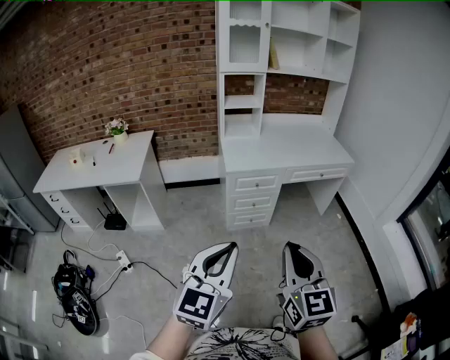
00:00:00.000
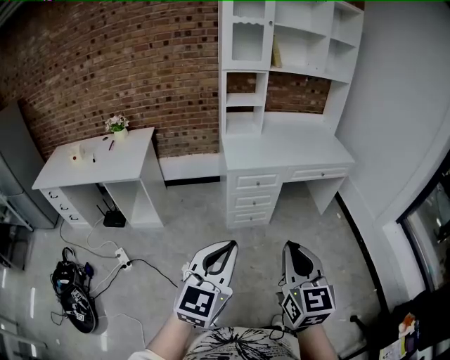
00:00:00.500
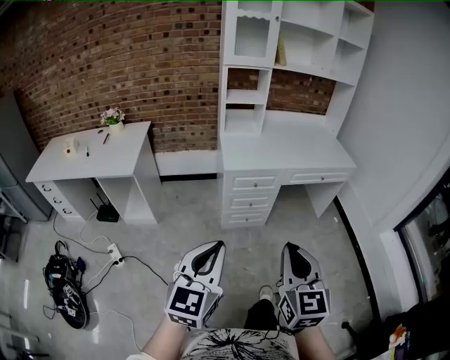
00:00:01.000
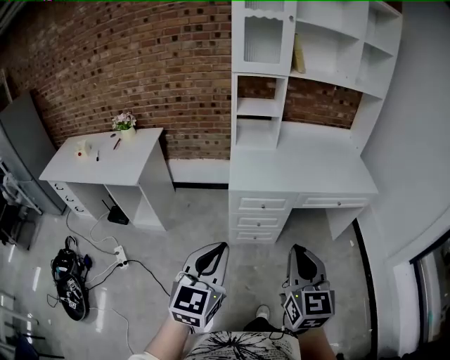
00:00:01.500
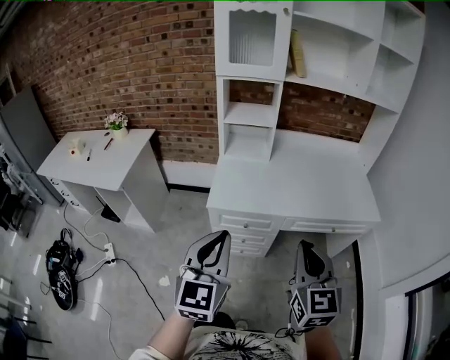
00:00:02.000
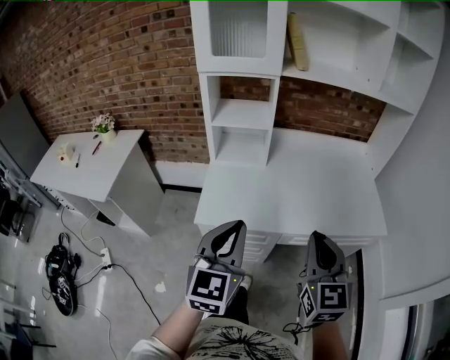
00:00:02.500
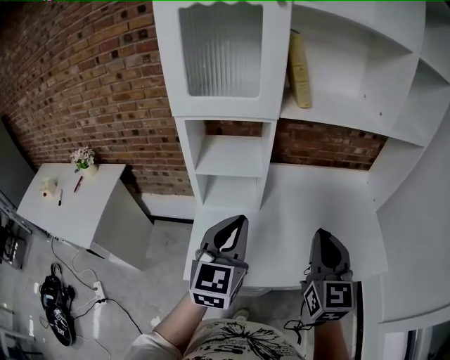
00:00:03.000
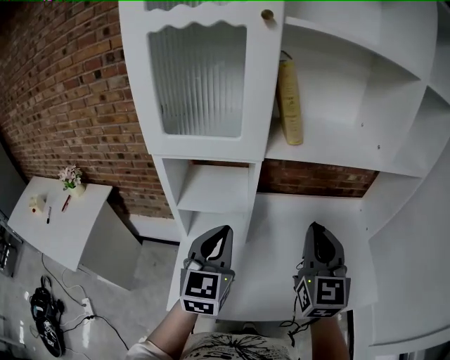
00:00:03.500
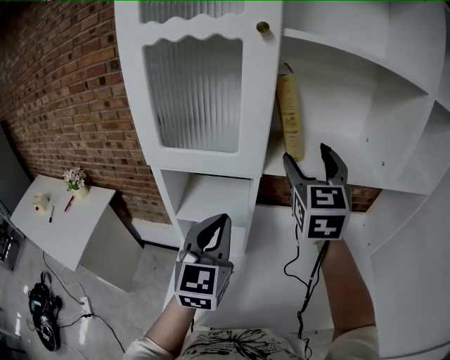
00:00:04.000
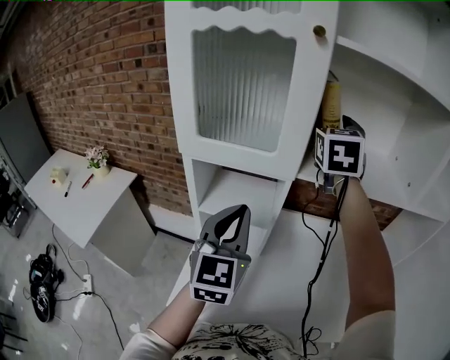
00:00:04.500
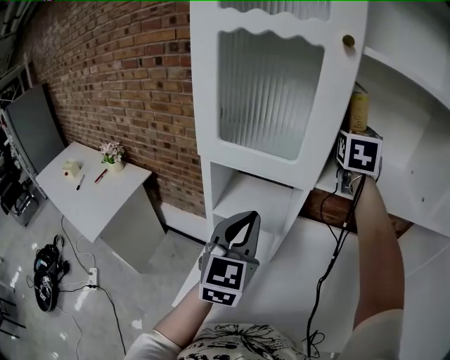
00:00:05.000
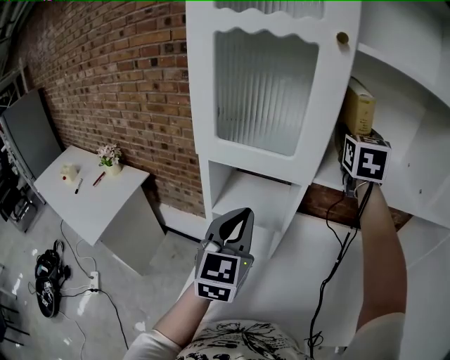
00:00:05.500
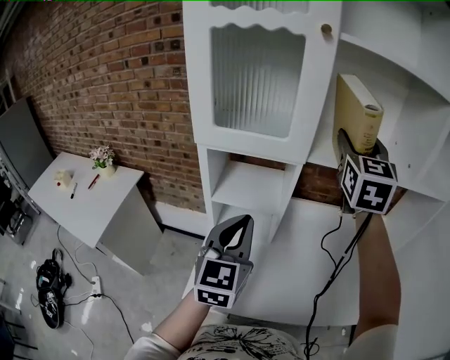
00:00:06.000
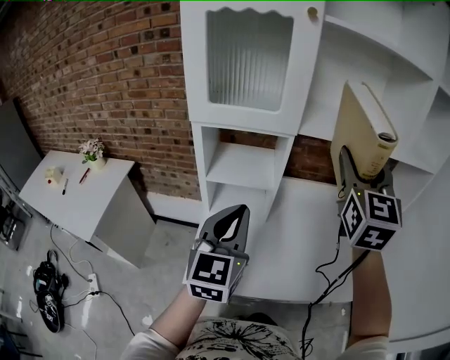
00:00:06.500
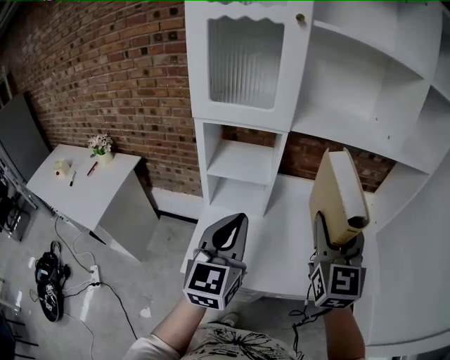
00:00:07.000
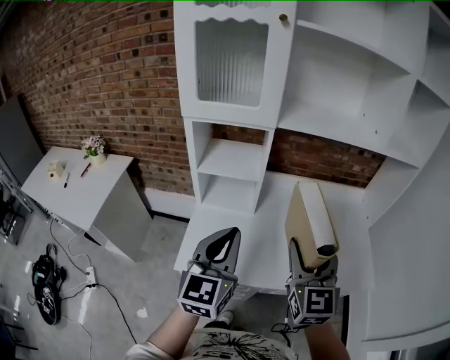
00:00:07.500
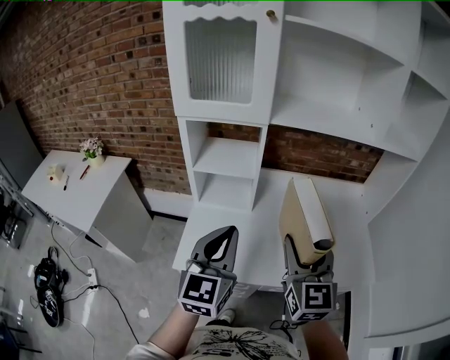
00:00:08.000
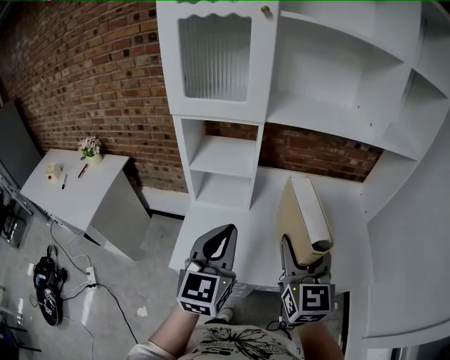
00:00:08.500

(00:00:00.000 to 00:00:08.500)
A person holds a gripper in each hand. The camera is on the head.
00:00:00.000 - 00:00:02.000: Both grippers are carried forward, some 50 cm. The left gripper rotates some 20 degrees.
00:00:02.000 - 00:00:04.000: The pair of grippers is taken forward, some 60 cm. The right gripper opens its fingers.
00:00:04.000 - 00:00:06.500: The grippers both shift backward by some 10 cm.
00:00:06.500 - 00:00:08.500: The right gripper travels downward and backward by about 25 cm; the left gripper shifts approximately 10 cm backward and to the right.

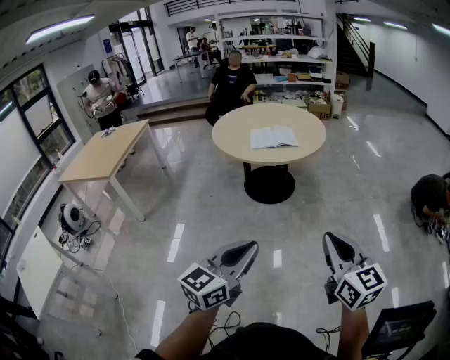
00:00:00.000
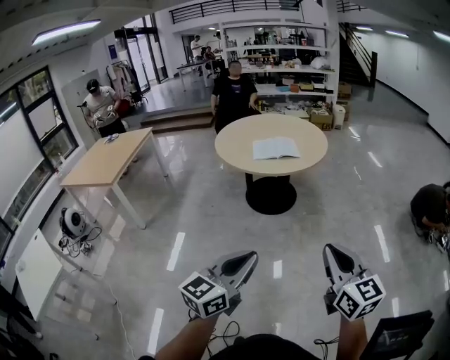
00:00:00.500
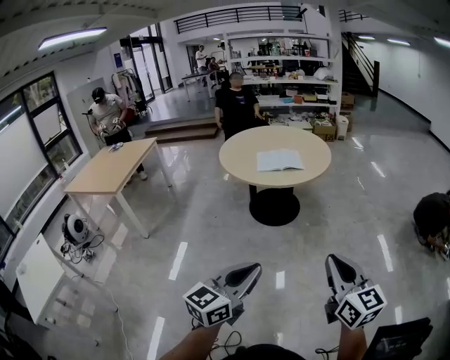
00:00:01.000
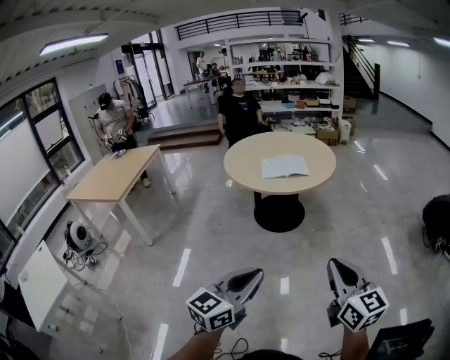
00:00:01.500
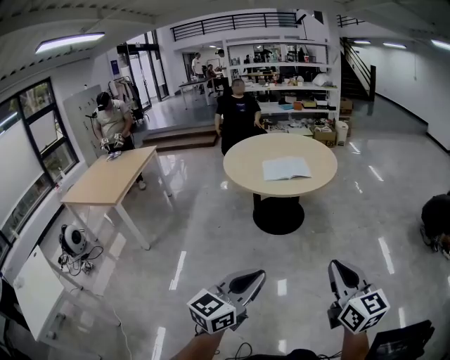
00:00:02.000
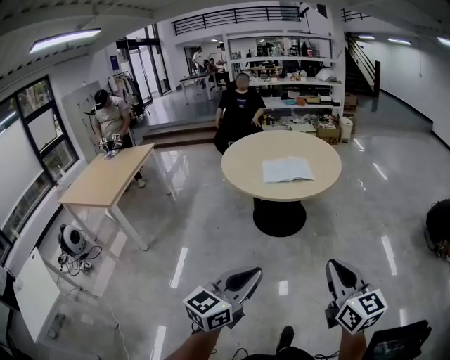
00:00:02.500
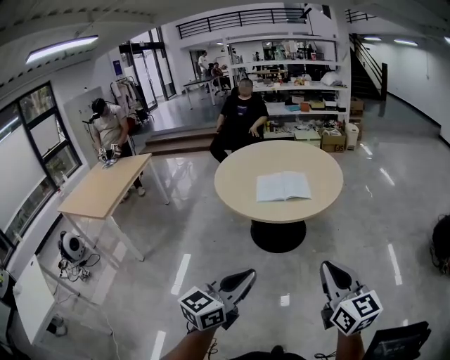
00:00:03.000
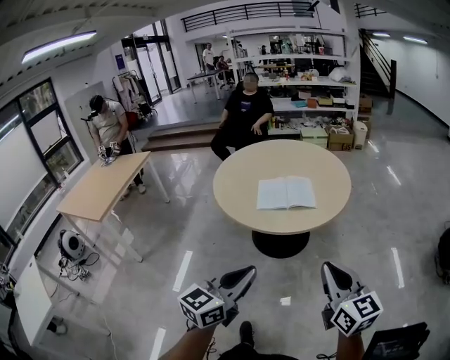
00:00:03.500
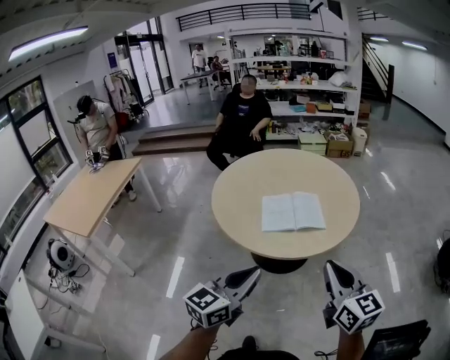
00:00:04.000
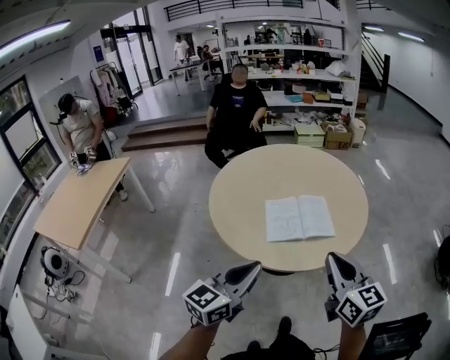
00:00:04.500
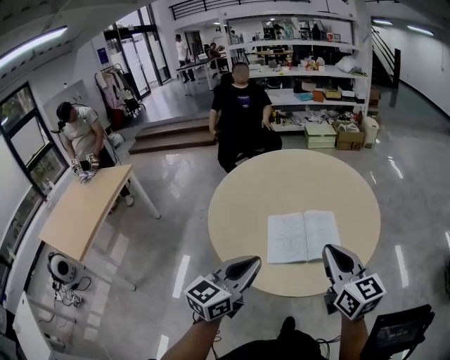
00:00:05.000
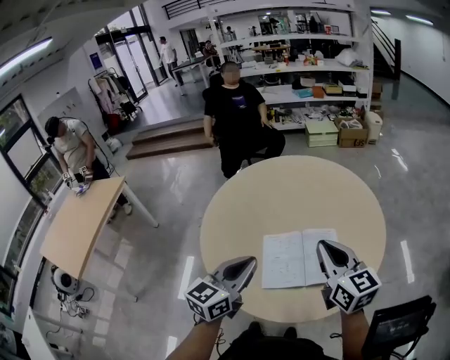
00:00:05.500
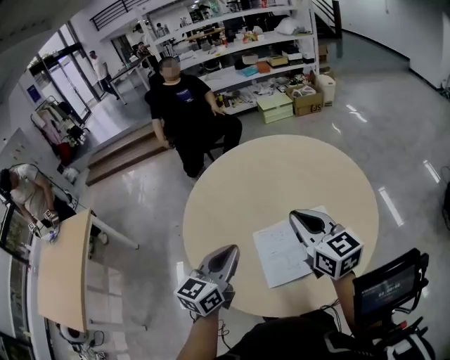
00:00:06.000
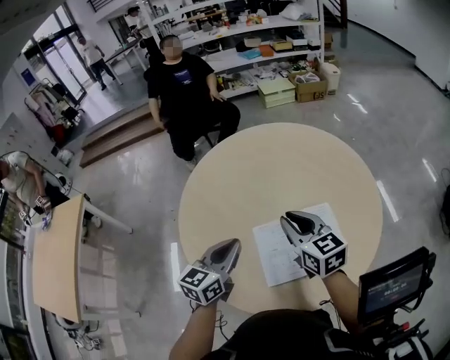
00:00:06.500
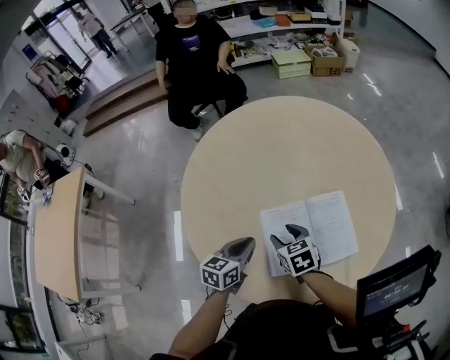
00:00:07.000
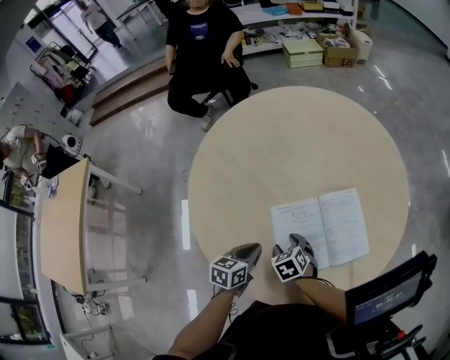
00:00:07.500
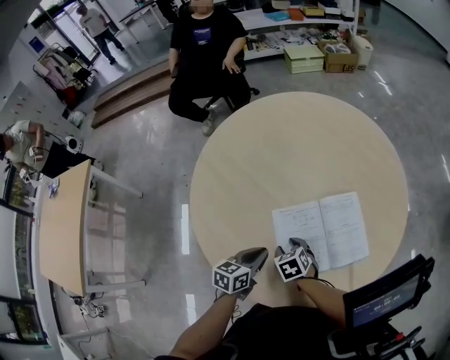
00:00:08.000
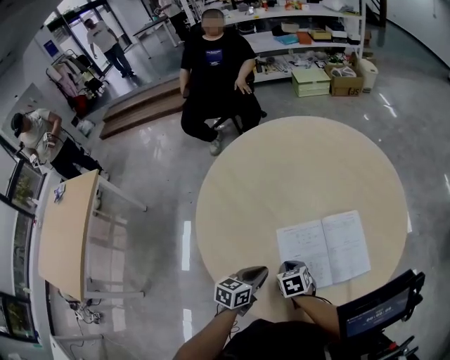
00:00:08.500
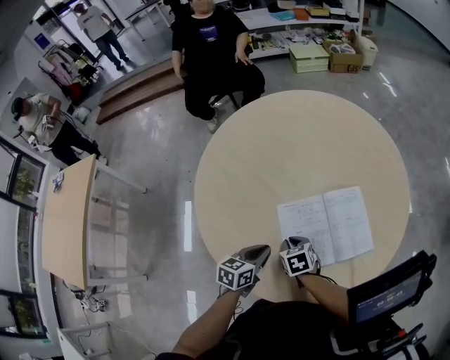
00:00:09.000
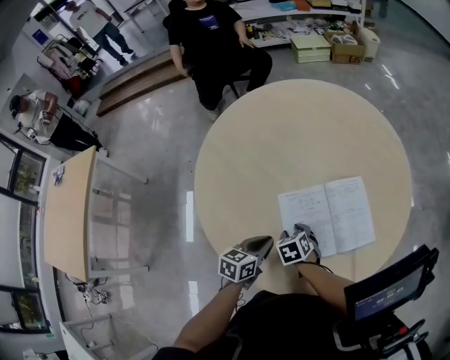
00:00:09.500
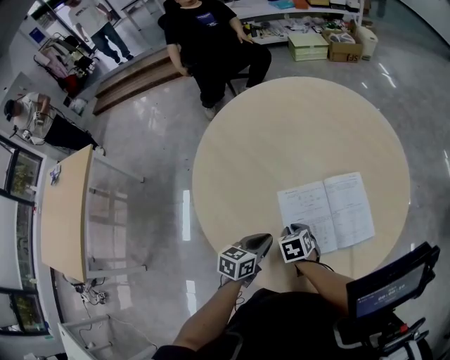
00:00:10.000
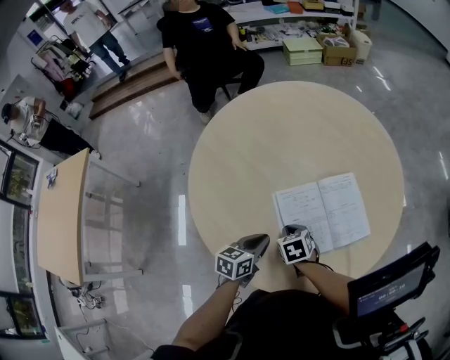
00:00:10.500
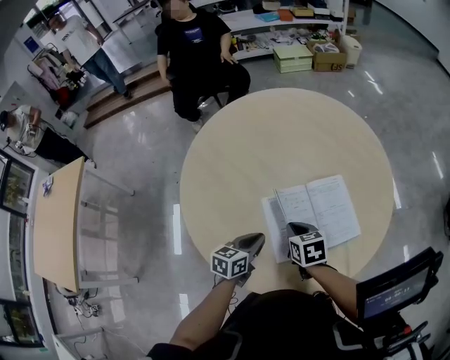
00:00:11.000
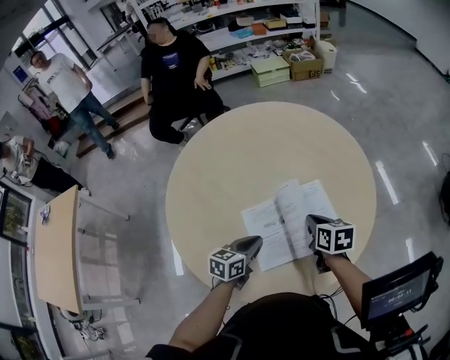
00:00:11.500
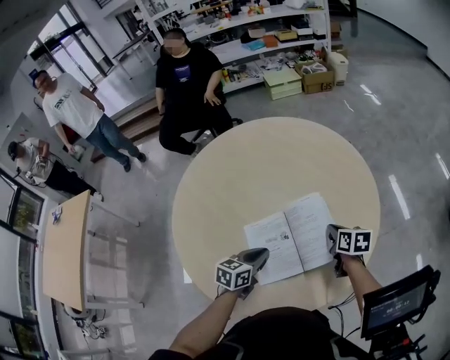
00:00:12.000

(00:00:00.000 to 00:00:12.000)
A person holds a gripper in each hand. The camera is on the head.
00:00:00.000 - 00:00:02.000: The two grippers go some 5 cm to the left.
00:00:02.000 - 00:00:04.000: The pair of grippers is taken forward, about 40 cm.
00:00:04.000 - 00:00:06.000: Both grippers are carried forward, about 50 cm.
00:00:06.000 - 00:00:08.000: Both grippers travel together downward, about 30 cm. The left gripper changes its angle by roughly 30 degrees; the right gripper points its fingers about 50 degrees further downward, and opens up.
00:00:08.000 - 00:00:10.000: The right gripper closes its fingers.
00:00:10.000 - 00:00:12.000: The right gripper shifts about 30 cm to the right and forward, and changes its angle by approximately 40 degrees. The left gripper travels to the right and forward by some 15 cm.

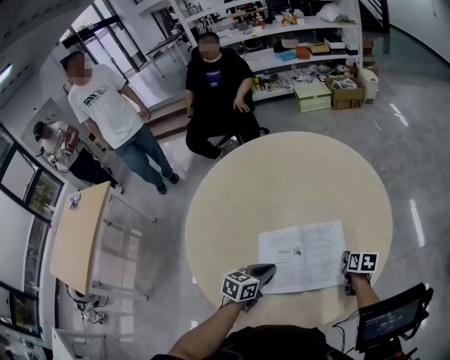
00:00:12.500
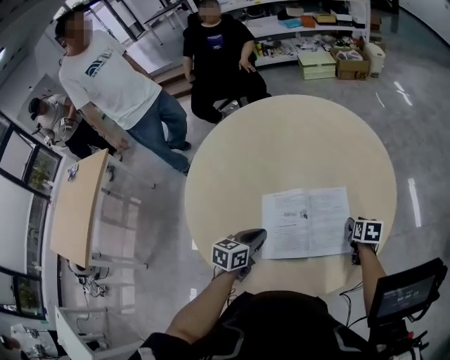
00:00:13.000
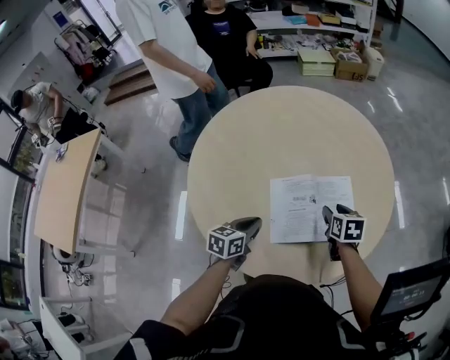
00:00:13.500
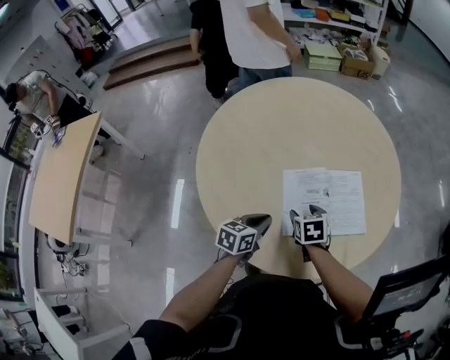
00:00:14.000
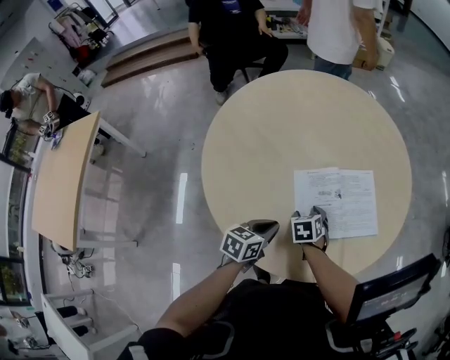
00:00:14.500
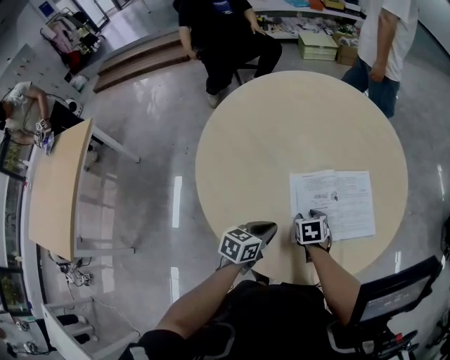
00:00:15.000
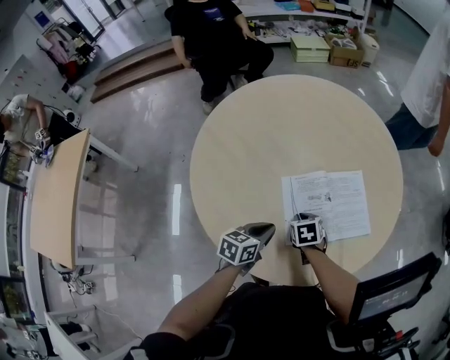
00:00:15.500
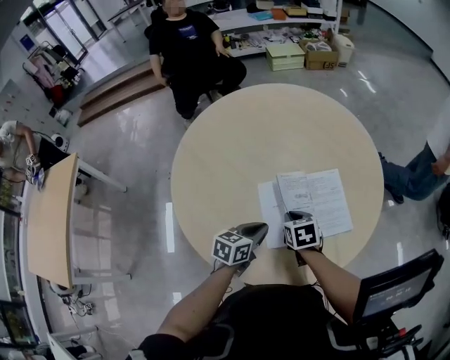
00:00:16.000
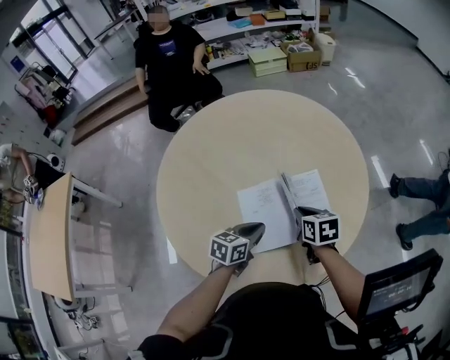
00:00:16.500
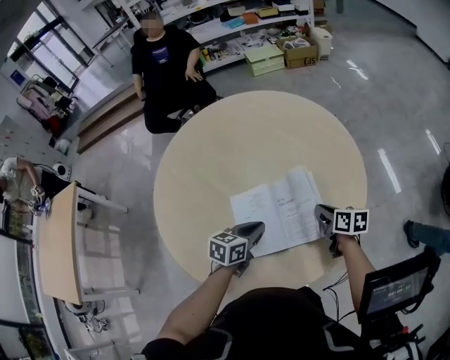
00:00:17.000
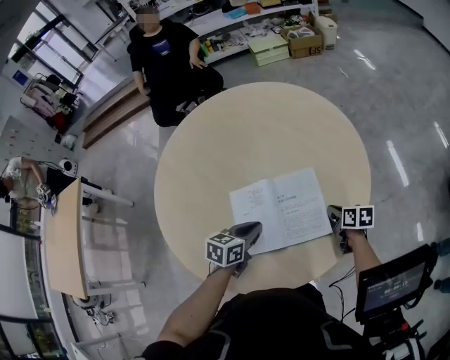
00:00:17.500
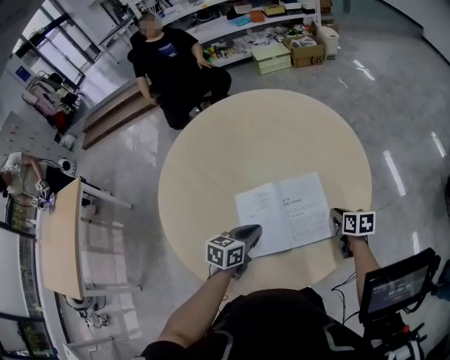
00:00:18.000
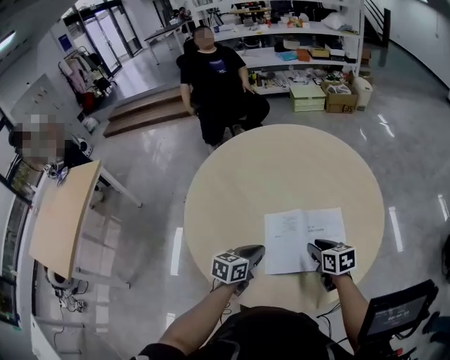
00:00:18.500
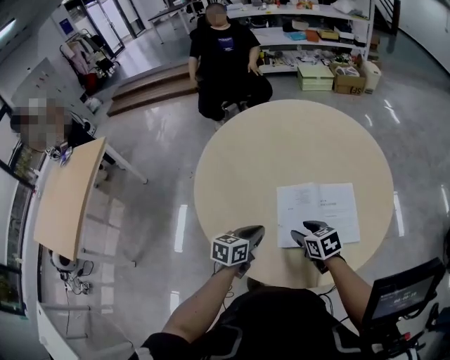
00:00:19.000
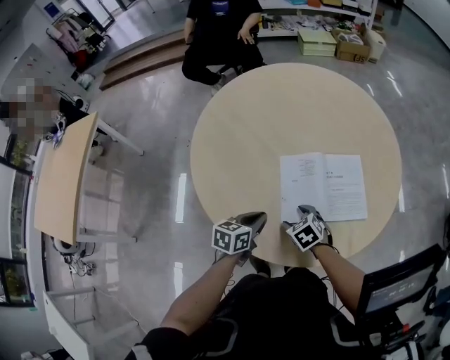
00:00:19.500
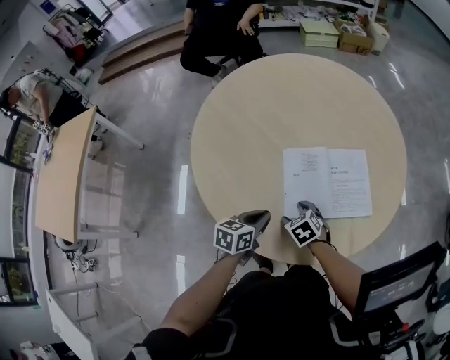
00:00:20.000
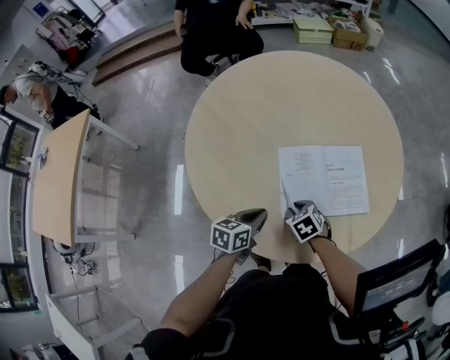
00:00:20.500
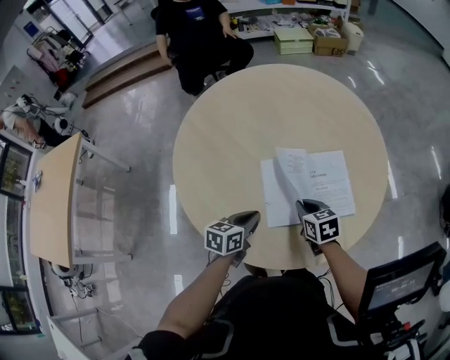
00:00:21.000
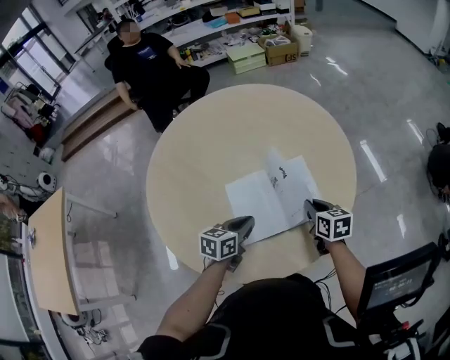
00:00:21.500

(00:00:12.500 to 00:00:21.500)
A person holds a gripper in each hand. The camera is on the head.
00:00:12.500 - 00:00:14.500: The left gripper shifts approximately 10 cm to the left and backward. Meanwhile the right gripper is displaced to the left and backward by roughly 30 cm, swivels about 40 degrees, and opens.
00:00:14.500 - 00:00:17.000: Both grippers move to the right and forward, about 25 cm. The right gripper swivels about 50 degrees, and closes.
00:00:17.000 - 00:00:19.500: The right gripper shifts some 30 cm to the left and backward, twists about 50 degrees counterclockwise, seen from behind, and opens, while the left gripper shifts some 20 cm to the left and backward.
00:00:19.500 - 00:00:21.500: The left gripper shifts approximately 15 cm to the right and forward, while the right gripper goes about 25 cm to the right and forward, rolls clockwise, seen from behind, by roughly 40 degrees, and closes.
